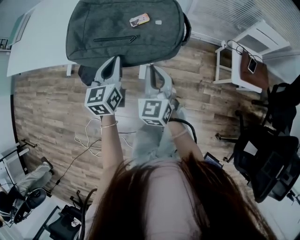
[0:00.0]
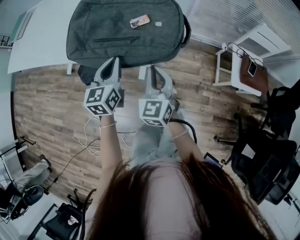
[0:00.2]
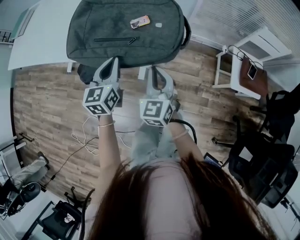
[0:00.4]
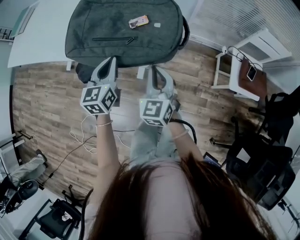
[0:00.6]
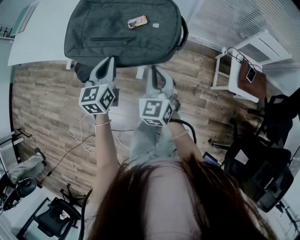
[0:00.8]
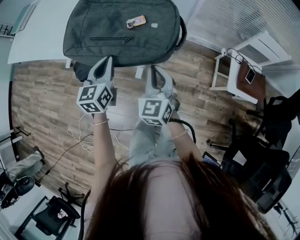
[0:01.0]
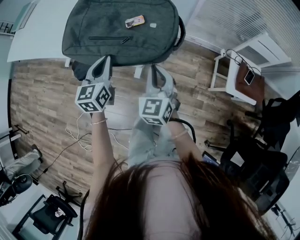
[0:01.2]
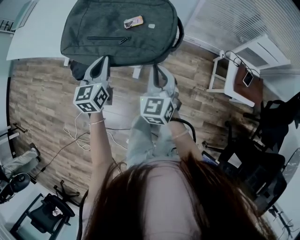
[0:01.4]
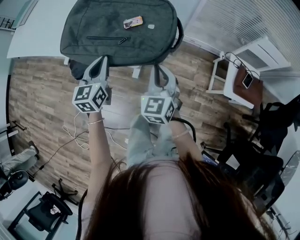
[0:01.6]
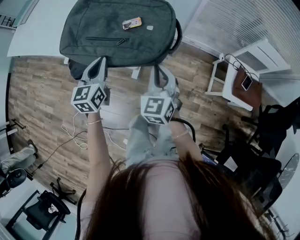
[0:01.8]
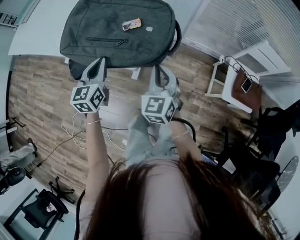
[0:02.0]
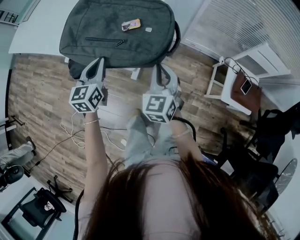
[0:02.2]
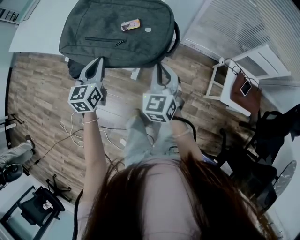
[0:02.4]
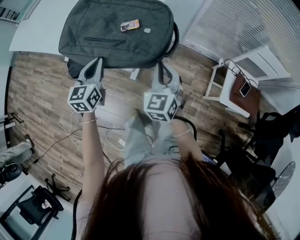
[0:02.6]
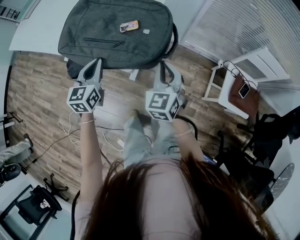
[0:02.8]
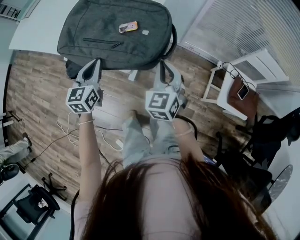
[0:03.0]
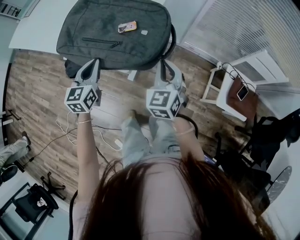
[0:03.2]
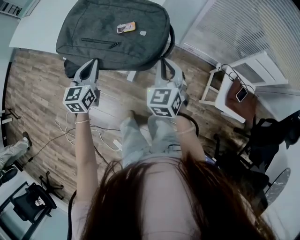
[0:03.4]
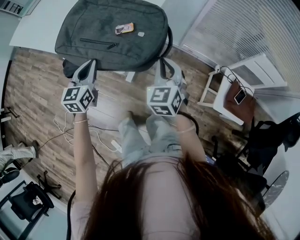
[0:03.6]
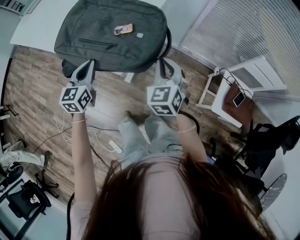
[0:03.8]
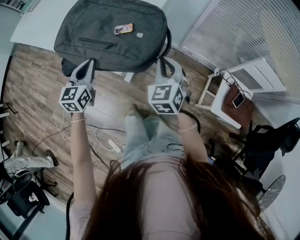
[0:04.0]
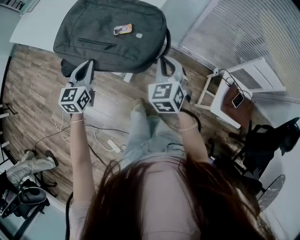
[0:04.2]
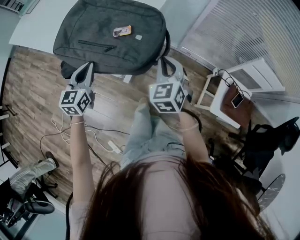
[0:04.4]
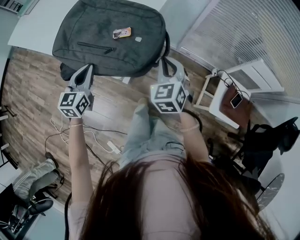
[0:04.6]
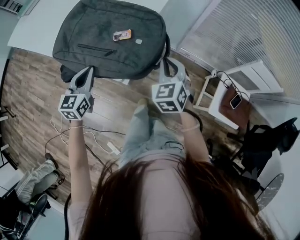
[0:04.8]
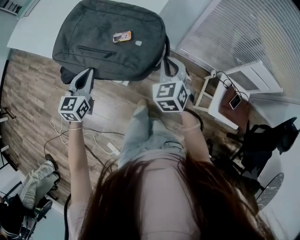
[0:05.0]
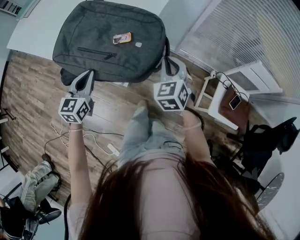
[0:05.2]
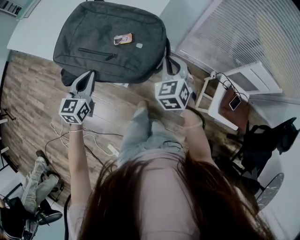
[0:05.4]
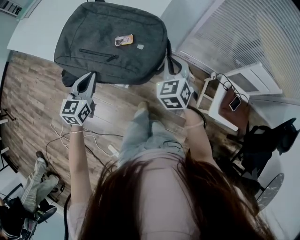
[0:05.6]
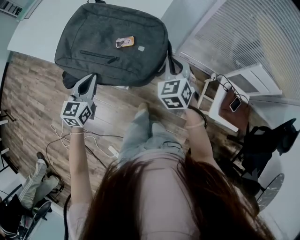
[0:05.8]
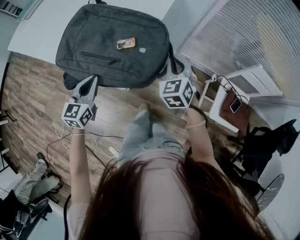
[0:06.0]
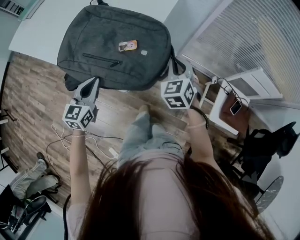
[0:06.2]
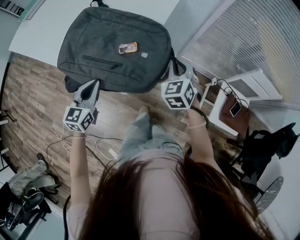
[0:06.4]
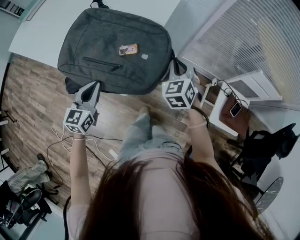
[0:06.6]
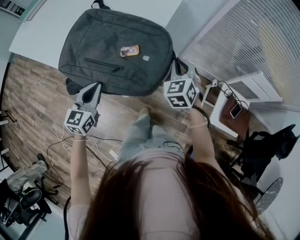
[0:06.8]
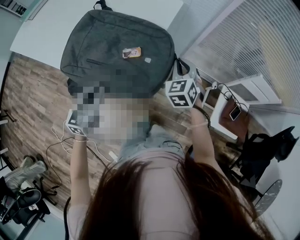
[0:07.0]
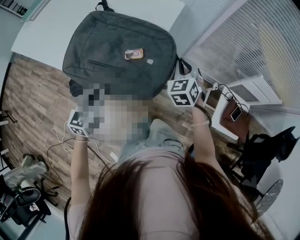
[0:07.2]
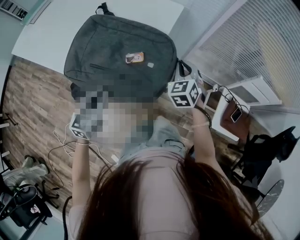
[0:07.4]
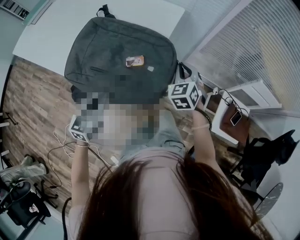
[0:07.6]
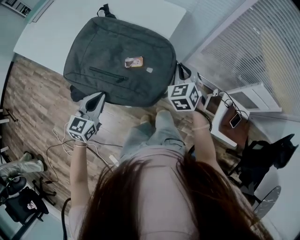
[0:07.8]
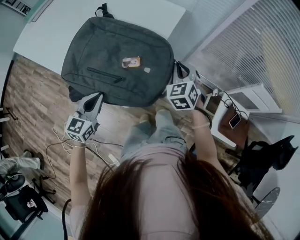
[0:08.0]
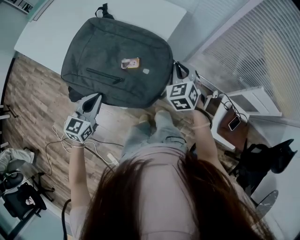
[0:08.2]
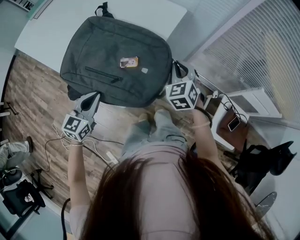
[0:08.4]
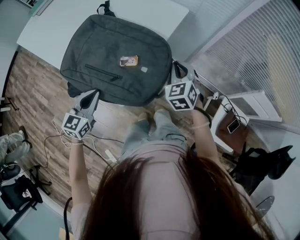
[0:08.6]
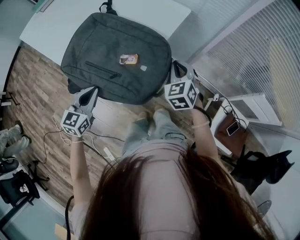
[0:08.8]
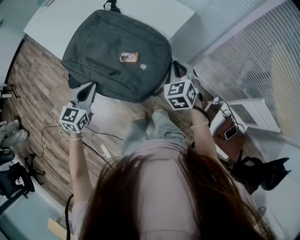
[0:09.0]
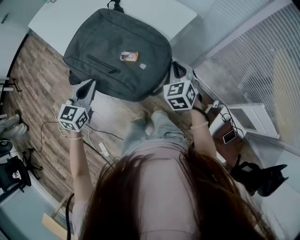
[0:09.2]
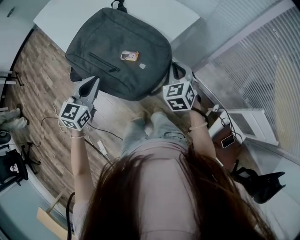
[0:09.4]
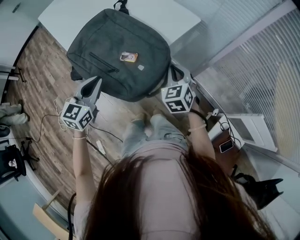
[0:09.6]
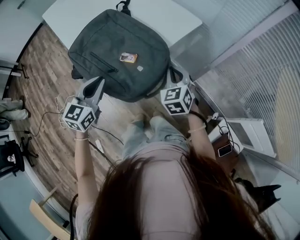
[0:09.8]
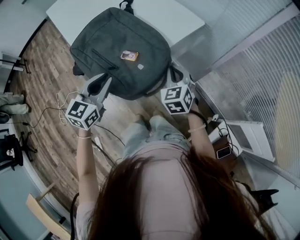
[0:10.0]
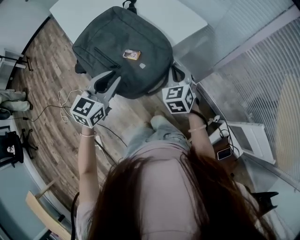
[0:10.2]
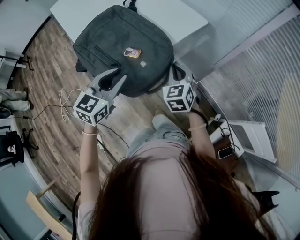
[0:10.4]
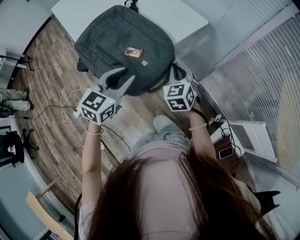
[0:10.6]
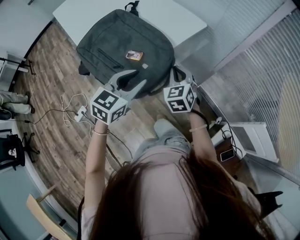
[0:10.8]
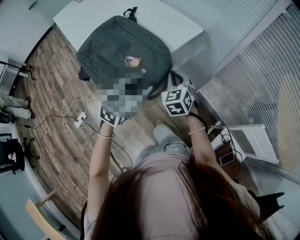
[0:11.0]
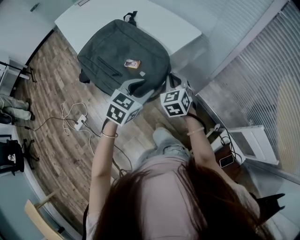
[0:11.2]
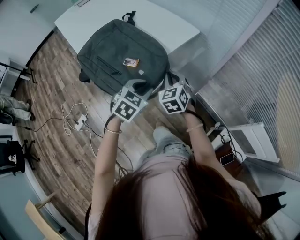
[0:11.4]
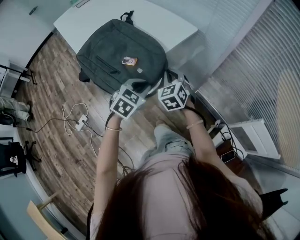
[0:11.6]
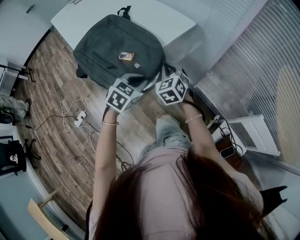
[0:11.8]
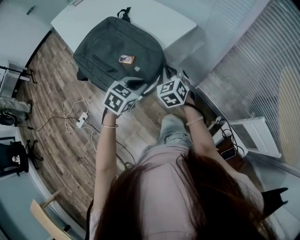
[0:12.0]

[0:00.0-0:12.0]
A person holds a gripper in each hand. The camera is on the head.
0:00.0 to 0:01.6: The right gripper goes about 5 cm to the right.
0:01.6 to 0:03.0: The right gripper heads to the right, covering some 5 cm.
0:03.0 to 0:04.4: The right gripper ends up approximately 5 cm from where it was.
0:04.4 to 0:06.0: The right gripper goes about 5 cm forward.
0:06.0 to 0:07.6: The right gripper goes approximately 5 cm forward.
0:07.6 to 0:09.0: The grippers make only small movements.
0:09.0 to 0:10.4: The left gripper moves to the right and upward, approximately 15 cm, and opens up.
0:10.4 to 0:12.0: The left gripper is displaced to the right and downward by some 15 cm, and rotates some 30 degrees.

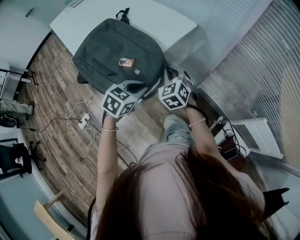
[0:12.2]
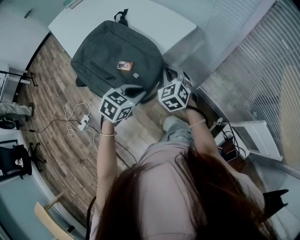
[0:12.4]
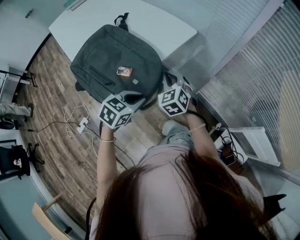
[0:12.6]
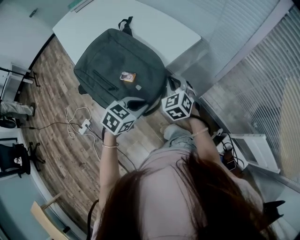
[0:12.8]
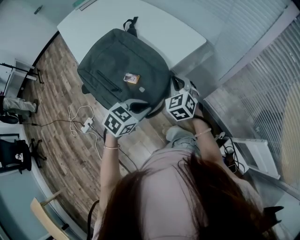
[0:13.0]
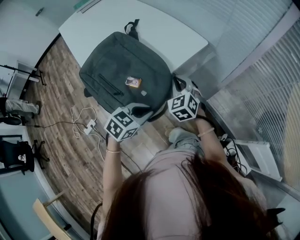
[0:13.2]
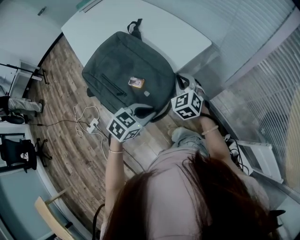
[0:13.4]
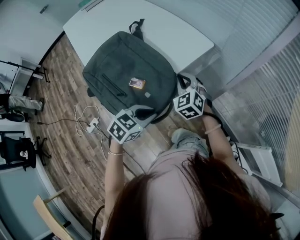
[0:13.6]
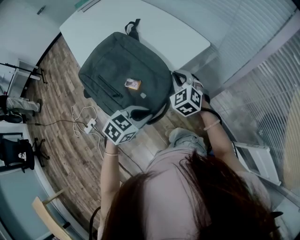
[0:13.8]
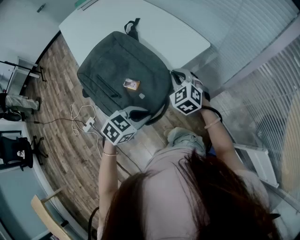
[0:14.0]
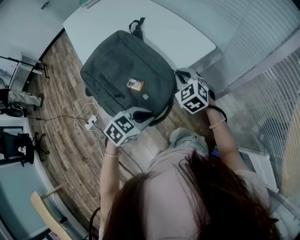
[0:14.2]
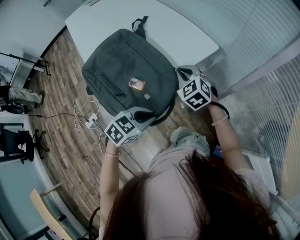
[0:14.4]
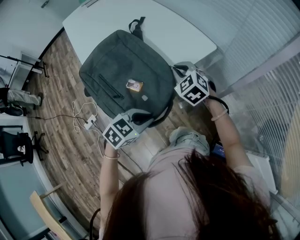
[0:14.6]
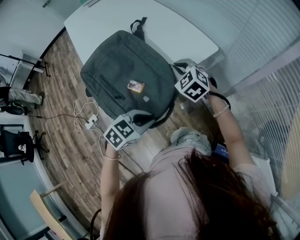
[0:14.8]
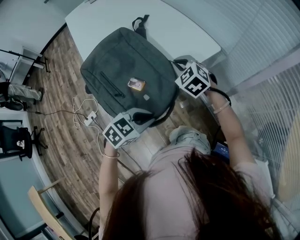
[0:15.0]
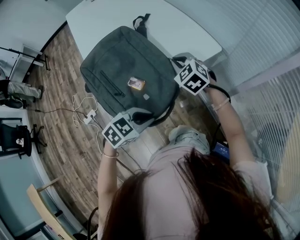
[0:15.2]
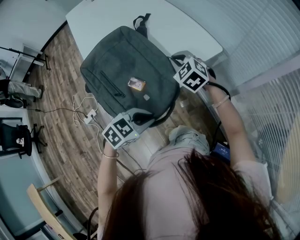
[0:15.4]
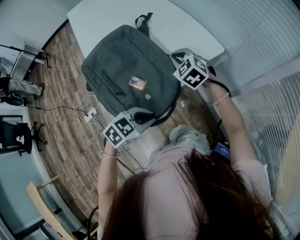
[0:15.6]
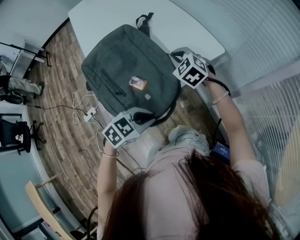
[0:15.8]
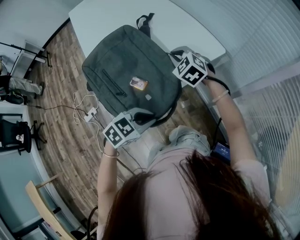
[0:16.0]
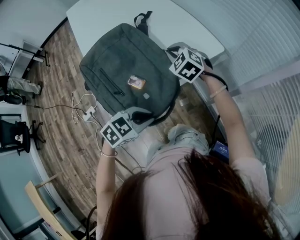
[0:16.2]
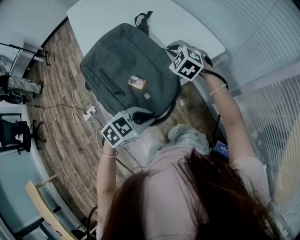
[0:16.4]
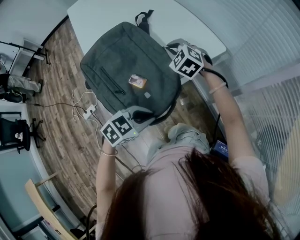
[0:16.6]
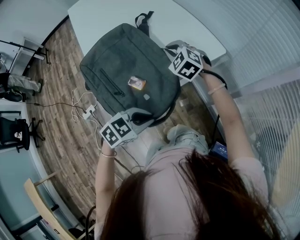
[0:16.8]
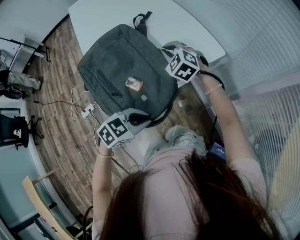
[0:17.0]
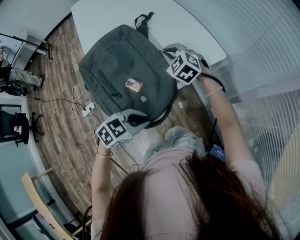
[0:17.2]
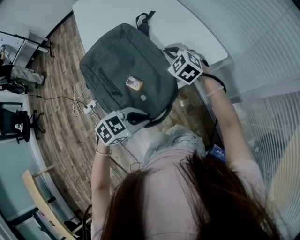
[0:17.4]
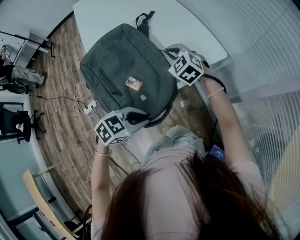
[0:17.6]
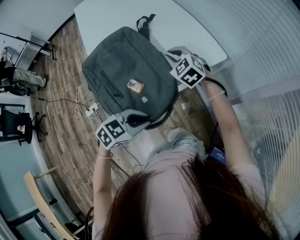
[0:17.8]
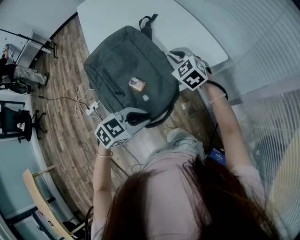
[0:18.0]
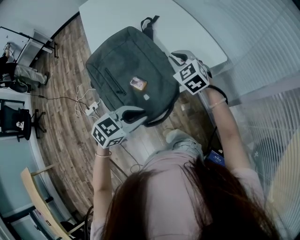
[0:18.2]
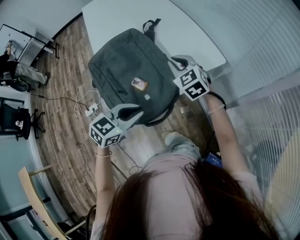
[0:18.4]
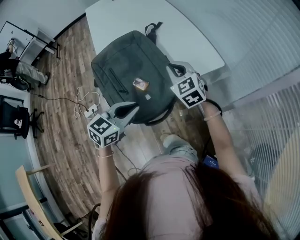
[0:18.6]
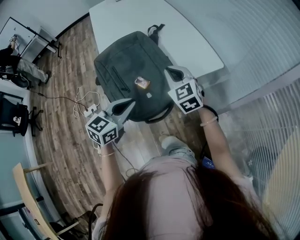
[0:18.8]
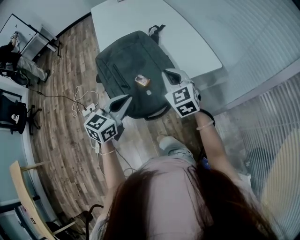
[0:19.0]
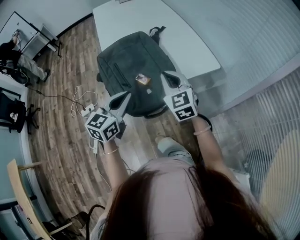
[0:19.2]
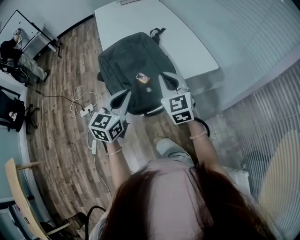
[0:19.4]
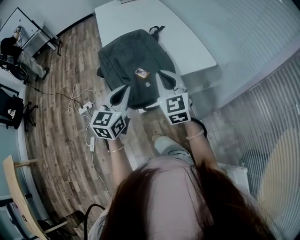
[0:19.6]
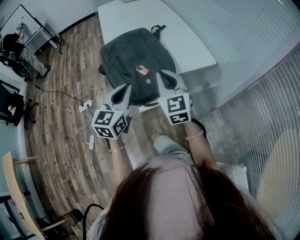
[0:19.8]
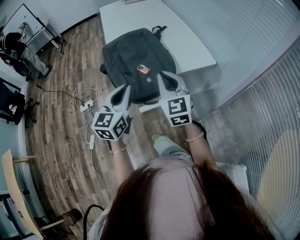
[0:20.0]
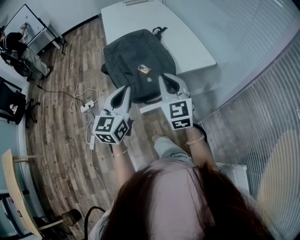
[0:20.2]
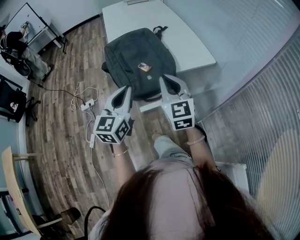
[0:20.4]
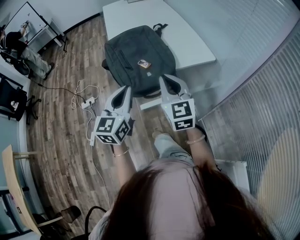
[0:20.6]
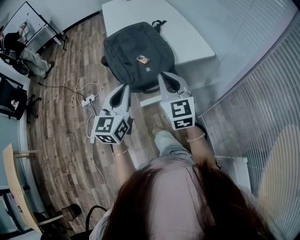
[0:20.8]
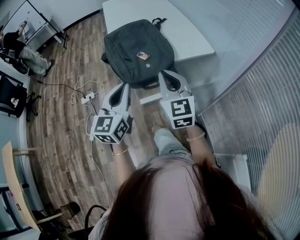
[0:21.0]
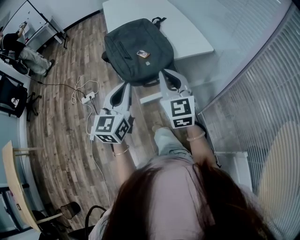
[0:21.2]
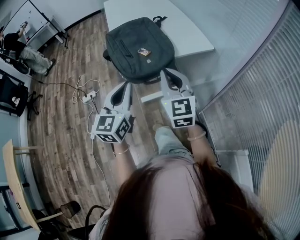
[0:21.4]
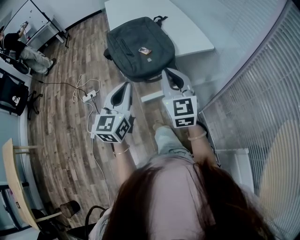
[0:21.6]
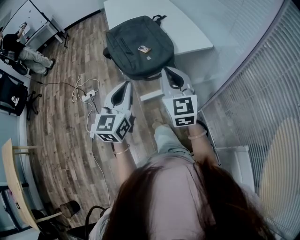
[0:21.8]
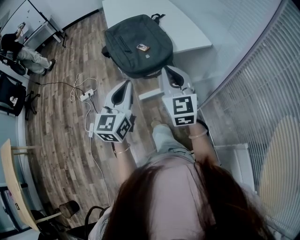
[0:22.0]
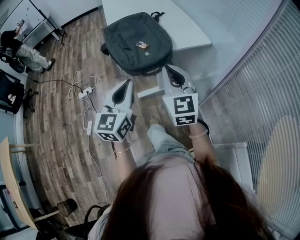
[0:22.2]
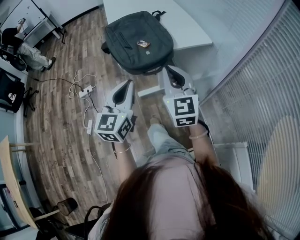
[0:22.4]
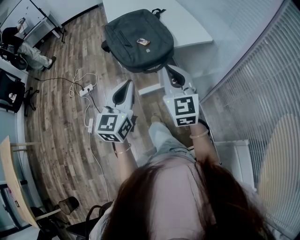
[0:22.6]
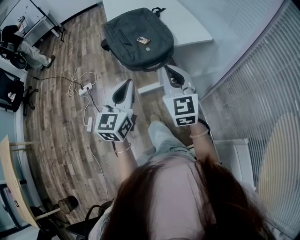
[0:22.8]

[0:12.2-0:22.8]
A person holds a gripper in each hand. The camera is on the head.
0:12.2 to 0:13.8: The right gripper travels forward by about 10 cm.
0:13.8 to 0:15.2: The right gripper is displaced forward and to the left by some 10 cm.
0:15.2 to 0:16.8: The right gripper moves about 5 cm.
0:16.8 to 0:18.2: The grippers move only a little.
0:18.2 to 0:19.8: The left gripper shifts about 15 cm upward and to the left, and changes its angle by some 50 degrees, while the right gripper travels backward and upward by some 25 cm, and turns by approximately 20 degrees.
0:19.8 to 0:21.2: The two grippers go roughly 10 cm backward.
0:21.2 to 0:22.8: The grippers both shift backward by roughly 5 cm.

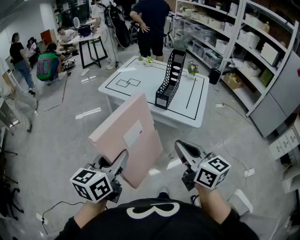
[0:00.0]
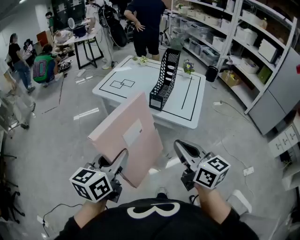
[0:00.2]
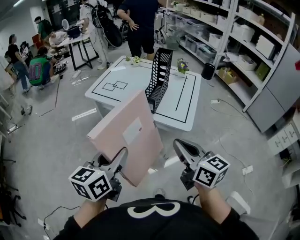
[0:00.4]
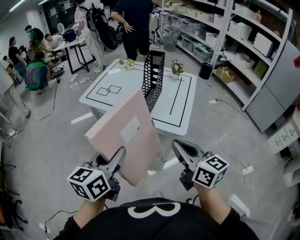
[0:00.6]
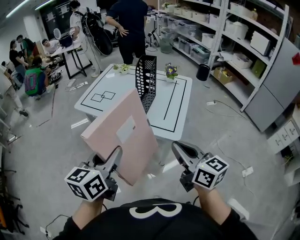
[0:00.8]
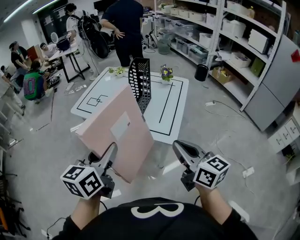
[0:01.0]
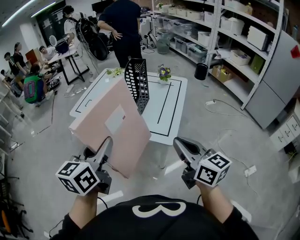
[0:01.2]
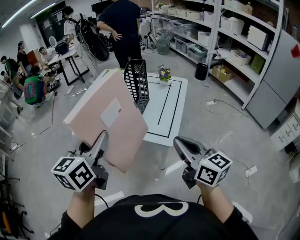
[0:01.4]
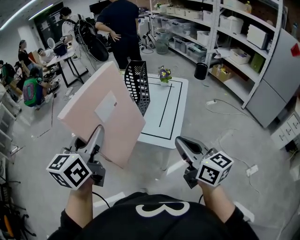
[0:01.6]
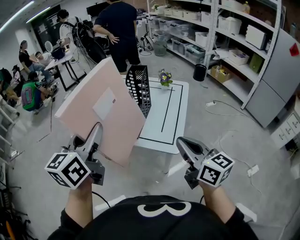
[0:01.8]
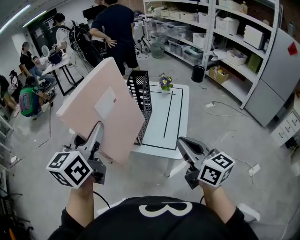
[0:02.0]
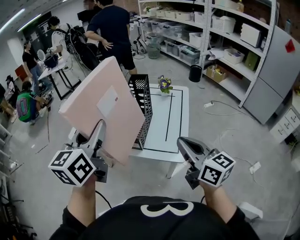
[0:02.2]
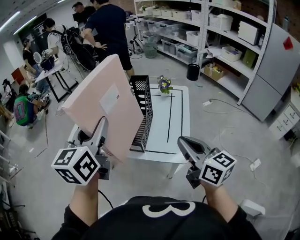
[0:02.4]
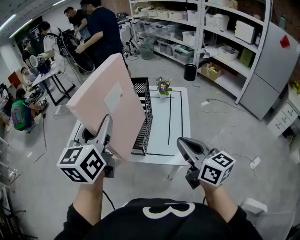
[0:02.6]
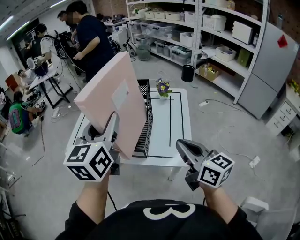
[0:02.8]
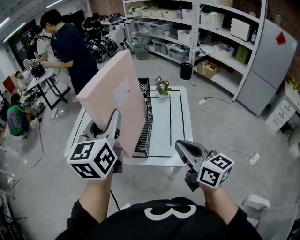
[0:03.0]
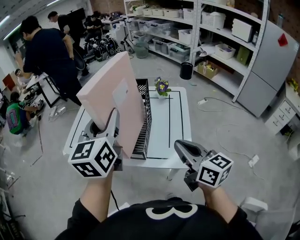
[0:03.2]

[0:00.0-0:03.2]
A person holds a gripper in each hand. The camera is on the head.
0:00.0 to 0:01.6: The left gripper heads forward and to the right, covering about 25 cm. Meanwhile the right gripper is displaced to the right and forward by some 25 cm.
0:01.6 to 0:03.2: The right gripper shifts roughly 15 cm forward. Meanwhile the left gripper travels forward by some 20 cm.
